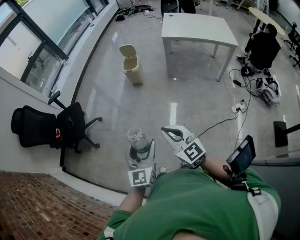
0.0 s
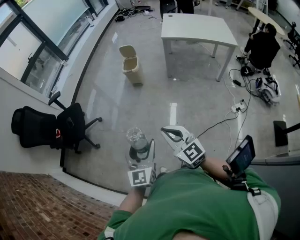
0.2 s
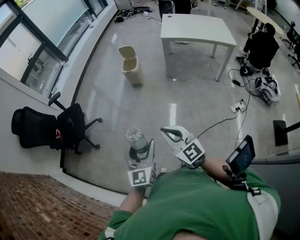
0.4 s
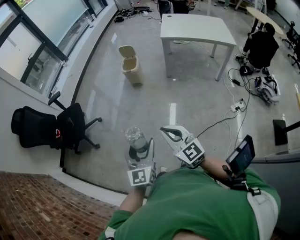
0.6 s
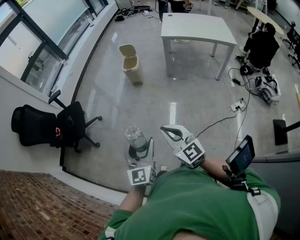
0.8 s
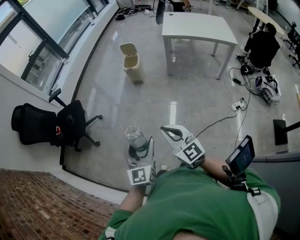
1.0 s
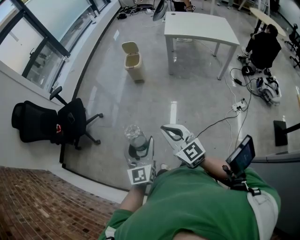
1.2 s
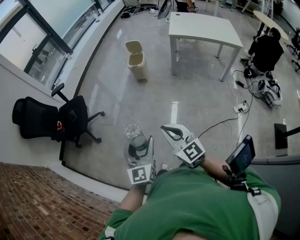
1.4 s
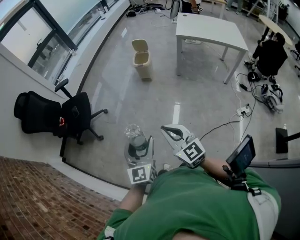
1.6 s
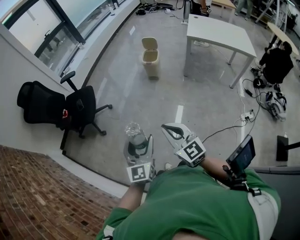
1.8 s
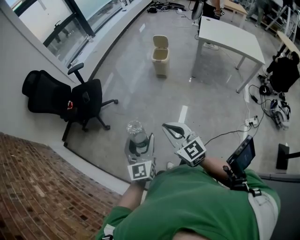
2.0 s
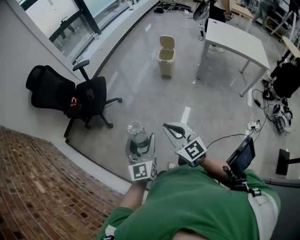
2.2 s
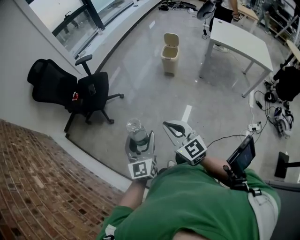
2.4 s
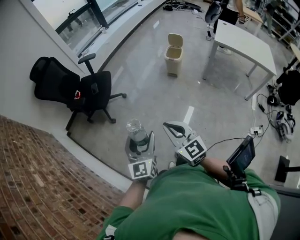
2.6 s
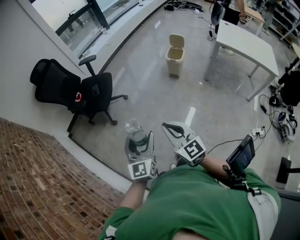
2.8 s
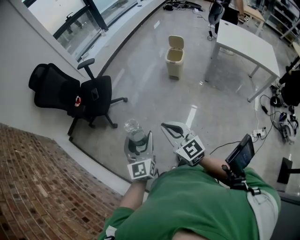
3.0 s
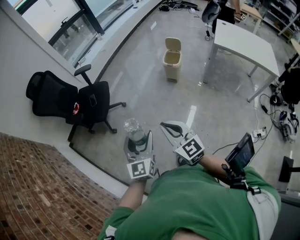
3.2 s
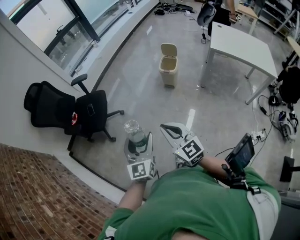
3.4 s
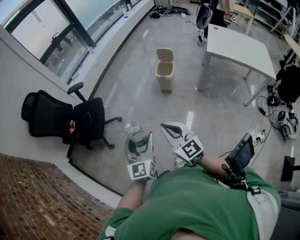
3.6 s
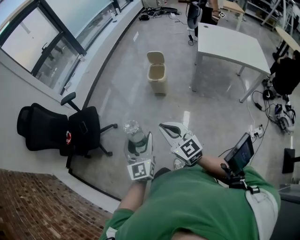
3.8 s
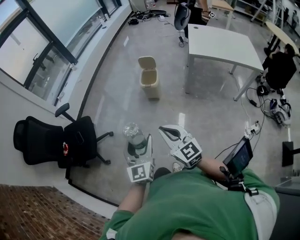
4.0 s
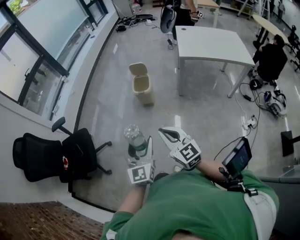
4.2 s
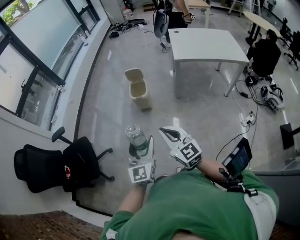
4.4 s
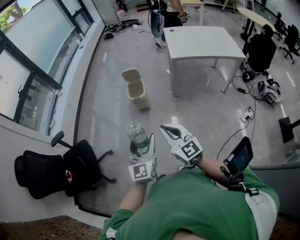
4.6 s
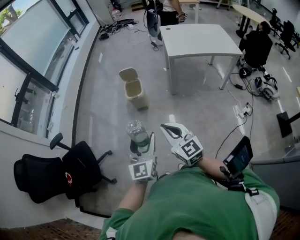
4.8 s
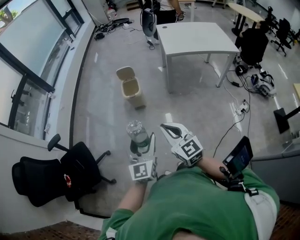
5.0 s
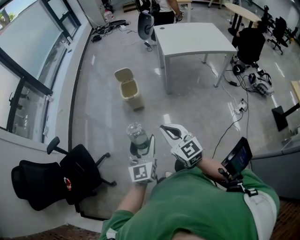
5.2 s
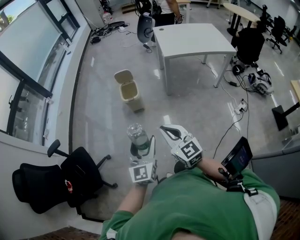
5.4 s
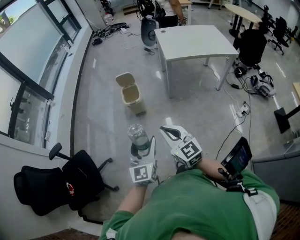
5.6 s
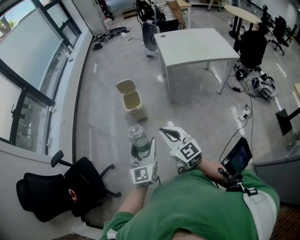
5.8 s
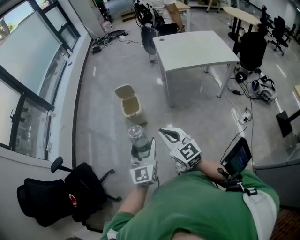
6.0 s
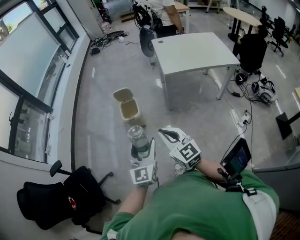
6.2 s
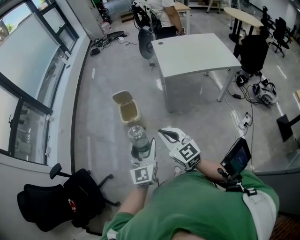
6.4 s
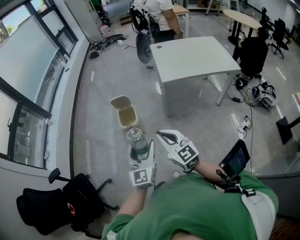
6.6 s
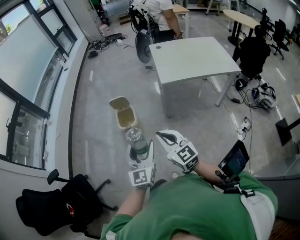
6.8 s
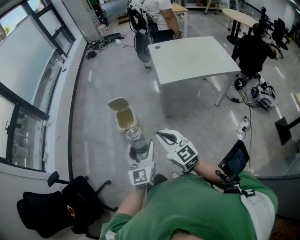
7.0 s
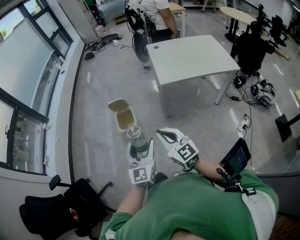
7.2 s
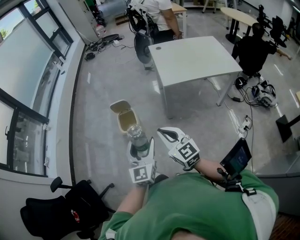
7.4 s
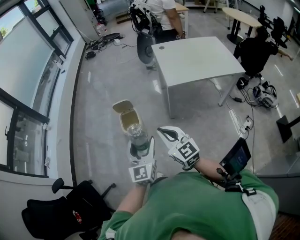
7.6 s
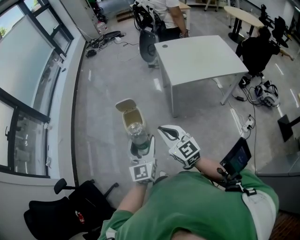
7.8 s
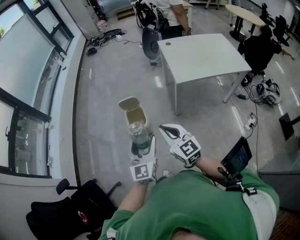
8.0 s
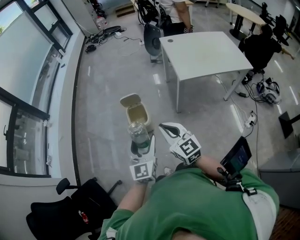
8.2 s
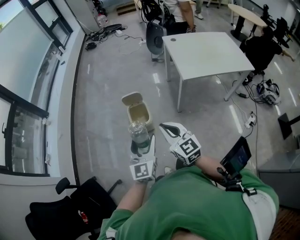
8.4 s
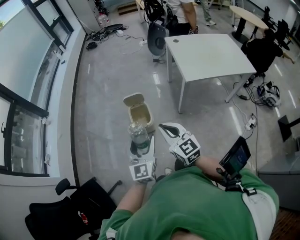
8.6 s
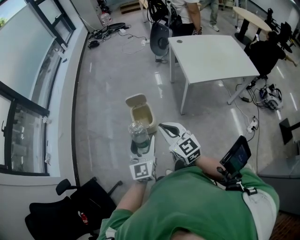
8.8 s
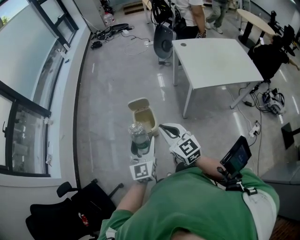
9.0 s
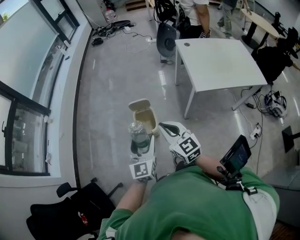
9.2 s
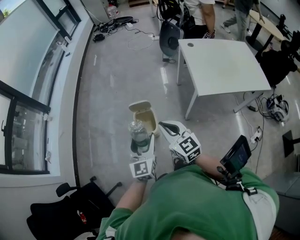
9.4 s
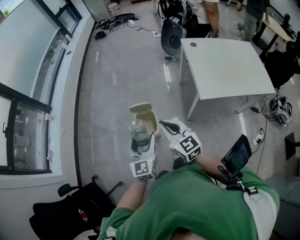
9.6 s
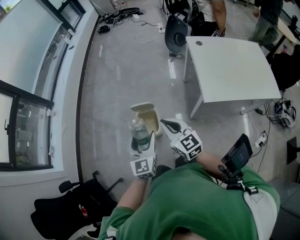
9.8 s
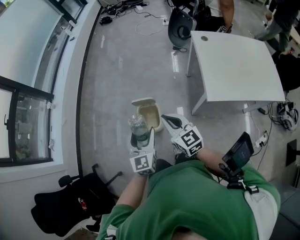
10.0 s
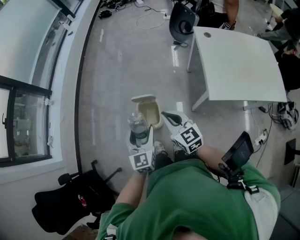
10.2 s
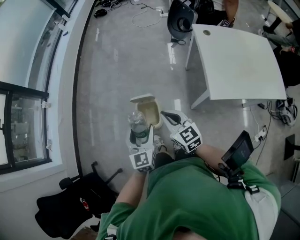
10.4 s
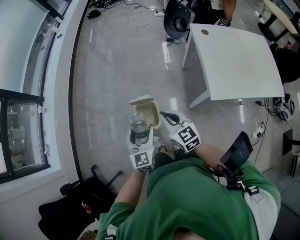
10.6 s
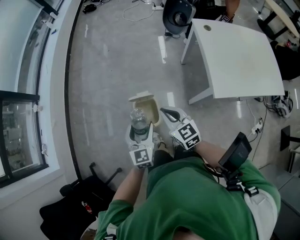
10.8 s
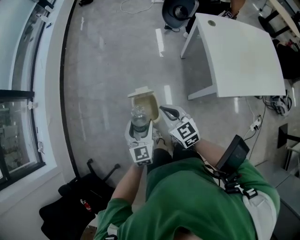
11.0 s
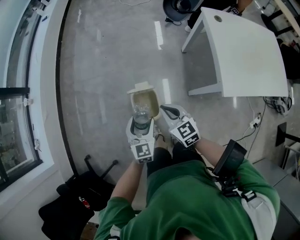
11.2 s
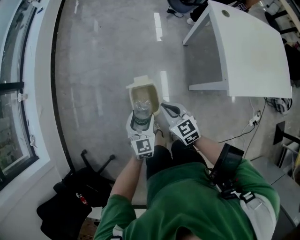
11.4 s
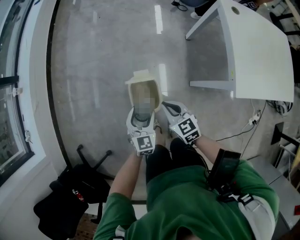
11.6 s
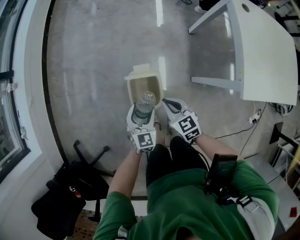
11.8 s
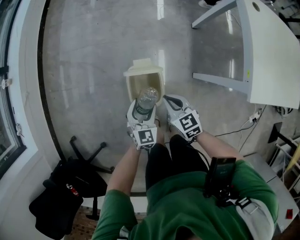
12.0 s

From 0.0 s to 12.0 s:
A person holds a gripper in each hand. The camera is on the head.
From 0.0 s to 1.6 s: Both grippers move to the left, approximately 10 cm.
From 1.6 s to 3.0 s: The right gripper is displaced forward and to the left by approximately 15 cm; the left gripper shifts about 15 cm to the left and forward.
From 3.0 s to 4.4 s: The left gripper moves approximately 30 cm, and turns by some 30 degrees. The right gripper ends up roughly 30 cm from where it was, and swivels some 30 degrees.
From 4.4 s to 6.0 s: The two grippers go roughly 10 cm forward.
From 6.0 s to 7.6 s: The two grippers go roughly 20 cm forward.
From 7.6 s to 9.0 s: The left gripper shifts approximately 20 cm to the left and forward, while the right gripper is displaced forward and to the left by roughly 20 cm.
From 9.0 s to 10.4 s: The right gripper moves forward and downward, roughly 20 cm. The left gripper is displaced forward by about 20 cm.
From 10.4 s to 12.0 s: The two grippers go approximately 30 cm downward. The left gripper rotates roughly 20 degrees. The right gripper changes its angle by about 20 degrees.

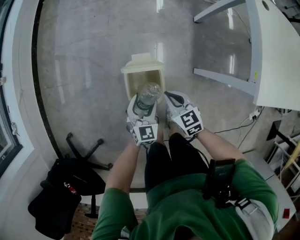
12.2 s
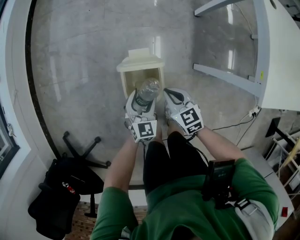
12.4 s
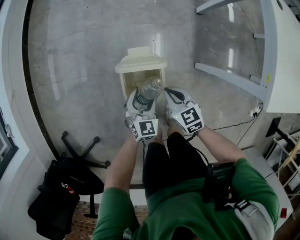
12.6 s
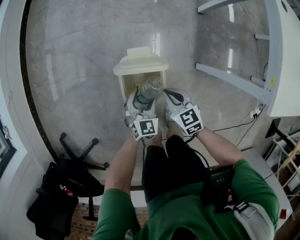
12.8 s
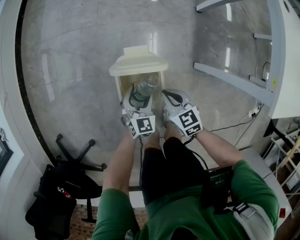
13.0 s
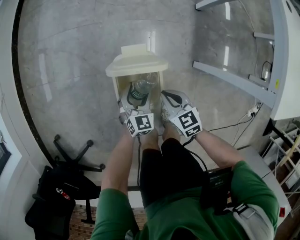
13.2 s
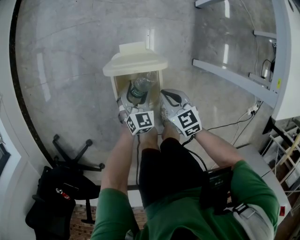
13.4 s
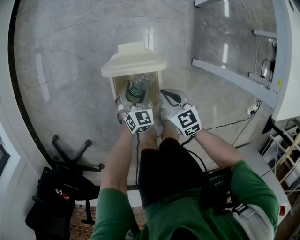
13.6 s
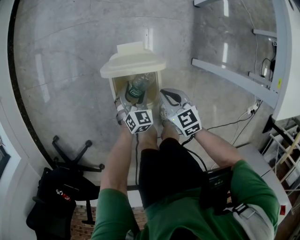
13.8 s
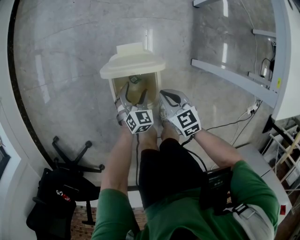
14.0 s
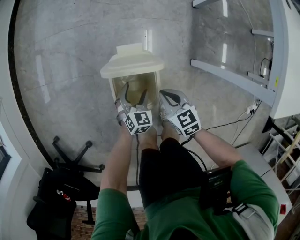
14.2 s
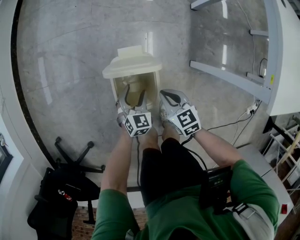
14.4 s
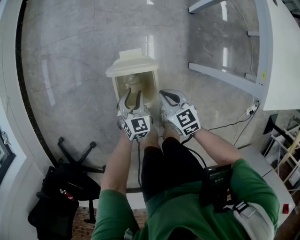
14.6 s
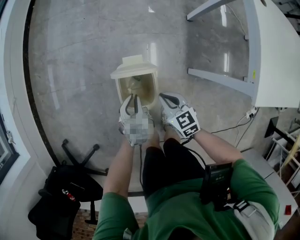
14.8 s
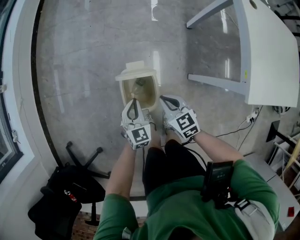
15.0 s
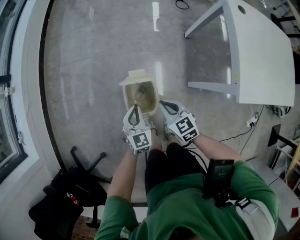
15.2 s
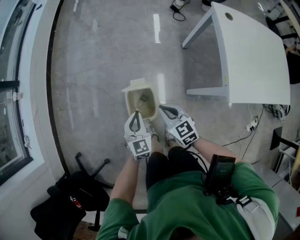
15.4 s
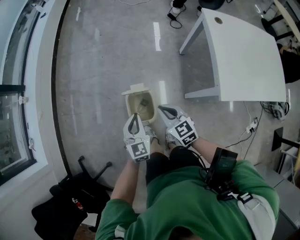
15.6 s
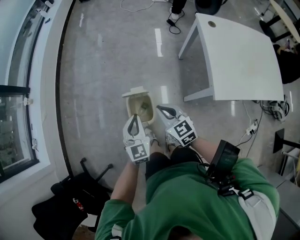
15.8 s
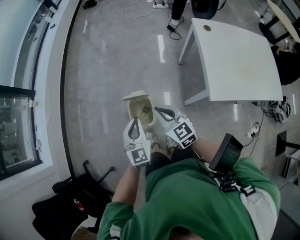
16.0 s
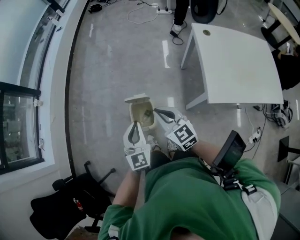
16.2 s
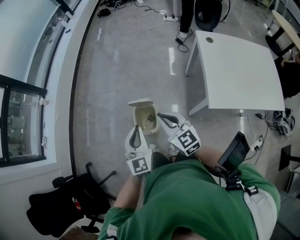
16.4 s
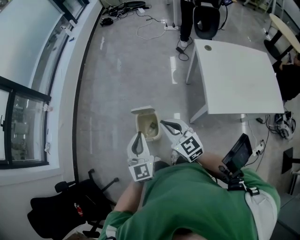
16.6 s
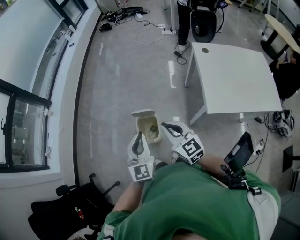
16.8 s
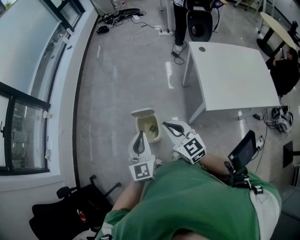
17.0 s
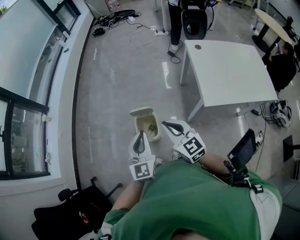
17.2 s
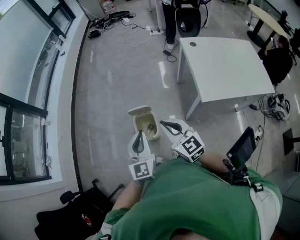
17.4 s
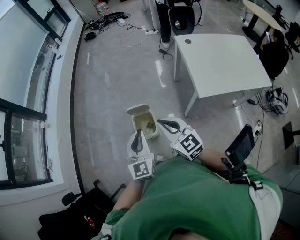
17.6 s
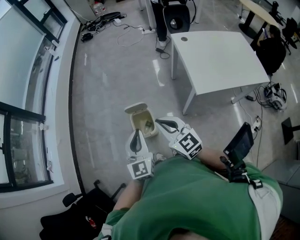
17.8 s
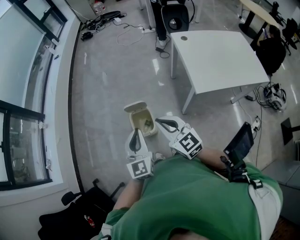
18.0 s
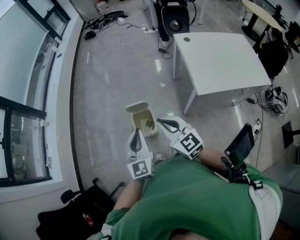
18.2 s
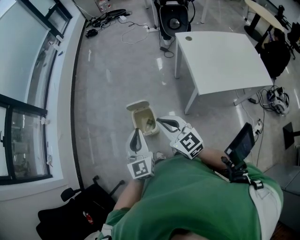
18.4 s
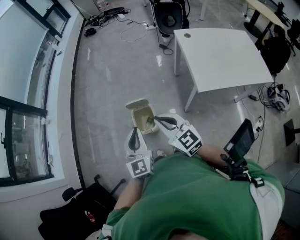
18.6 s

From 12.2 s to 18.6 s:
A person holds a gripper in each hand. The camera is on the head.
From 12.2 s to 13.8 s: Both grippers move downward, approximately 15 cm.
From 13.8 s to 15.4 s: The two grippers go roughly 30 cm upward. The left gripper changes its angle by some 30 degrees, and closes its fingers.
From 15.4 s to 17.0 s: The grippers both shift upward by approximately 30 cm. The left gripper swivels about 20 degrees. Meanwhile the right gripper turns by some 20 degrees.
From 17.0 s to 18.6 s: The right gripper changes place by roughly 5 cm.

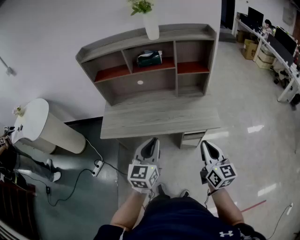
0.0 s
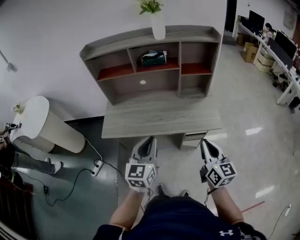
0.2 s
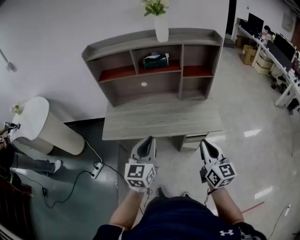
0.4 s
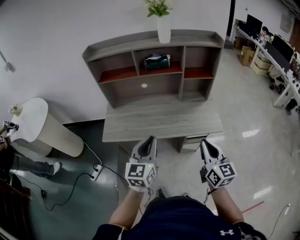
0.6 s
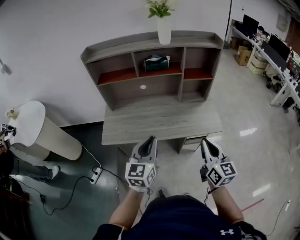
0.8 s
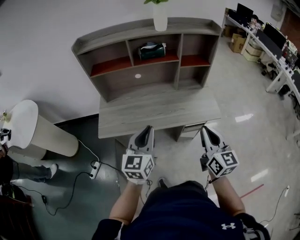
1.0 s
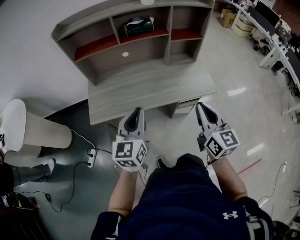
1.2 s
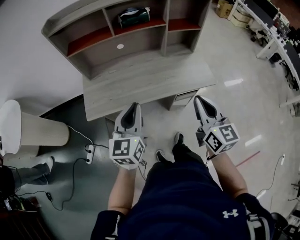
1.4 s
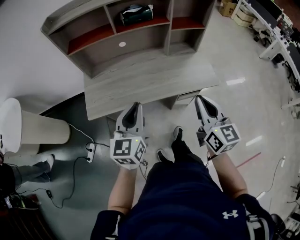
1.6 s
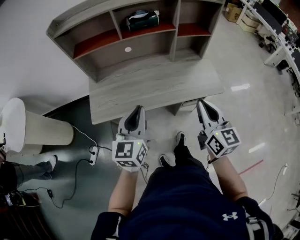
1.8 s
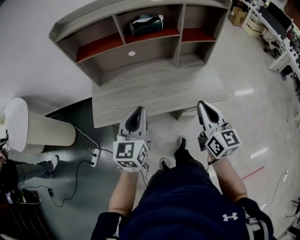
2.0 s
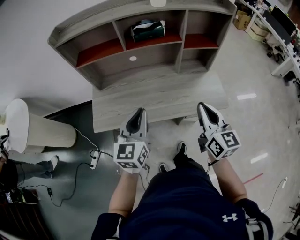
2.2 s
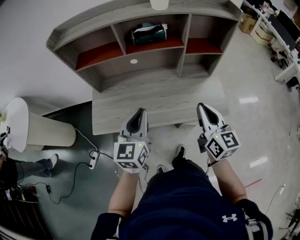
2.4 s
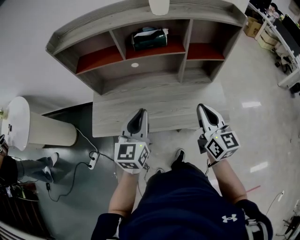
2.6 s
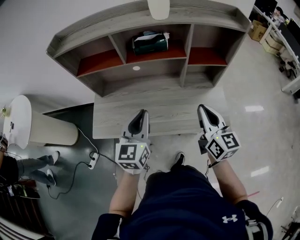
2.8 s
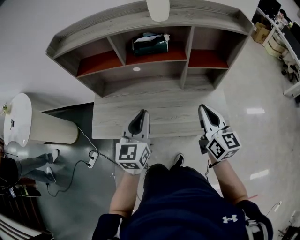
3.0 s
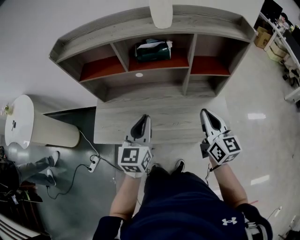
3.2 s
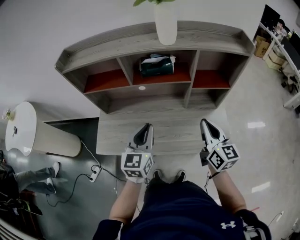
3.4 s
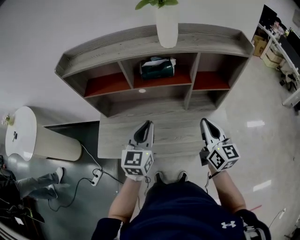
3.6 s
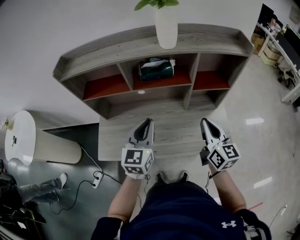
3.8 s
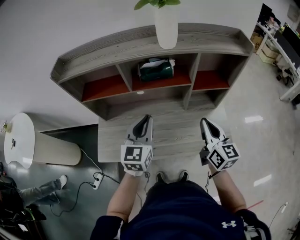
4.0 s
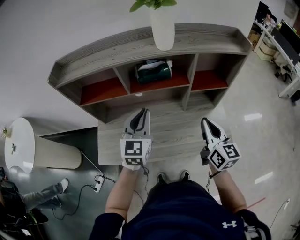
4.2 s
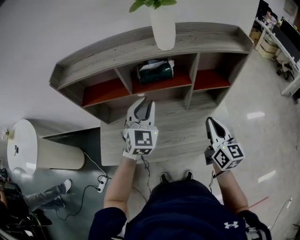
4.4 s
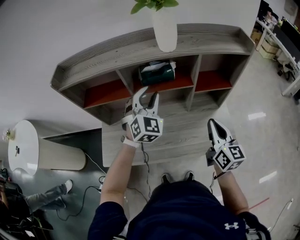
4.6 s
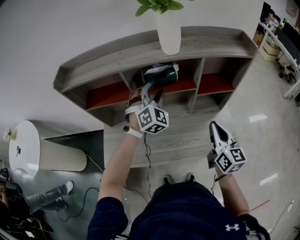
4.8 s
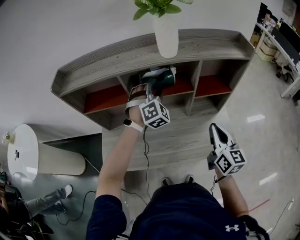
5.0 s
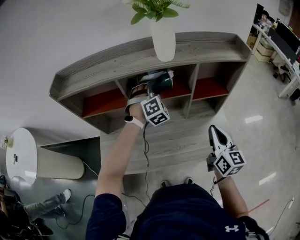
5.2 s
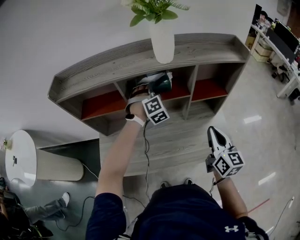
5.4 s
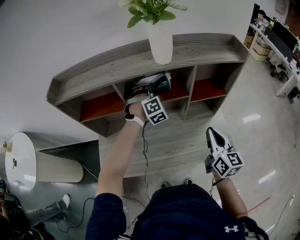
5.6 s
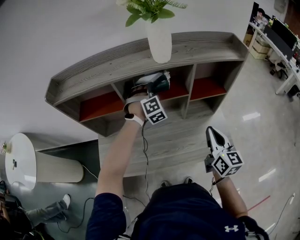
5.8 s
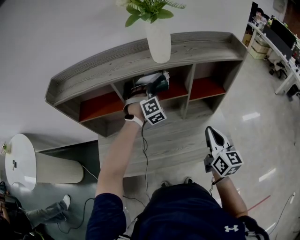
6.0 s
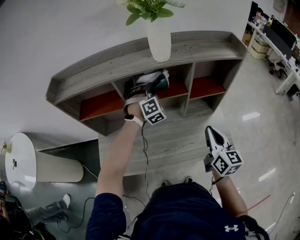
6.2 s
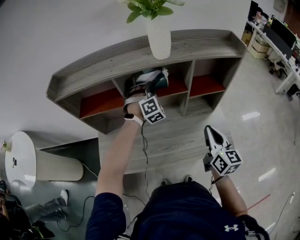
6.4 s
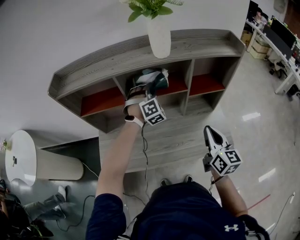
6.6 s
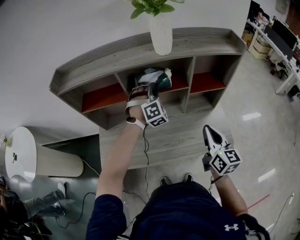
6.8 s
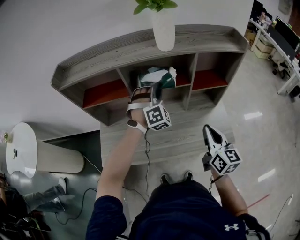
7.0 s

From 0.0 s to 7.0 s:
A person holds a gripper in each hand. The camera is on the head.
From 0.0 s to 1.4 s: Both grippers travel together to the left, some 15 cm.
From 1.4 s to 2.8 s: The two grippers go approximately 20 cm forward.
From 2.8 s to 4.2 s: The right gripper goes about 5 cm forward; the left gripper is displaced forward by some 15 cm.
From 4.2 s to 5.6 s: The left gripper is displaced forward by roughly 20 cm, twists about 60 degrees clockwise, seen from behind, and opens up.
From 5.6 s to 7.0 s: The right gripper moves some 5 cm, while the left gripper is displaced backward by roughly 10 cm.
